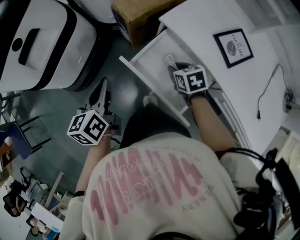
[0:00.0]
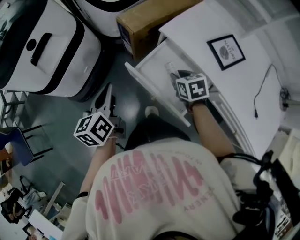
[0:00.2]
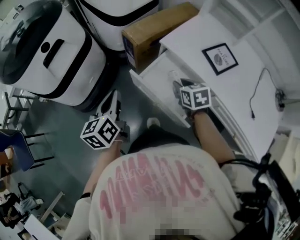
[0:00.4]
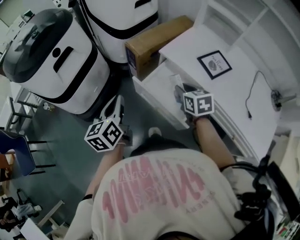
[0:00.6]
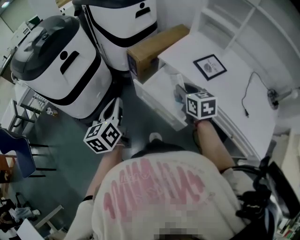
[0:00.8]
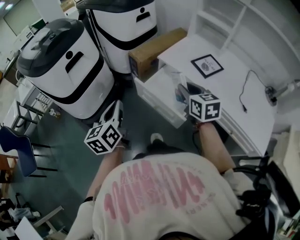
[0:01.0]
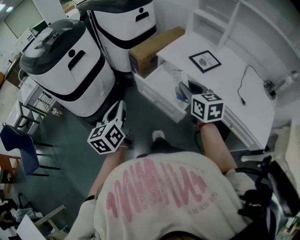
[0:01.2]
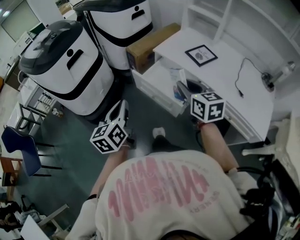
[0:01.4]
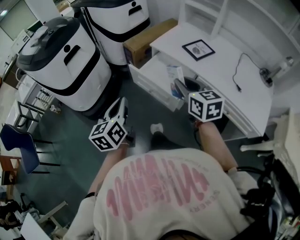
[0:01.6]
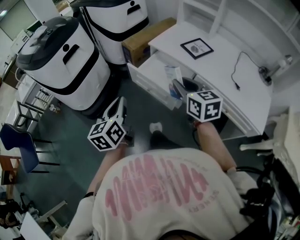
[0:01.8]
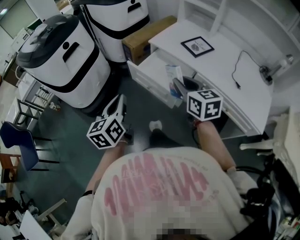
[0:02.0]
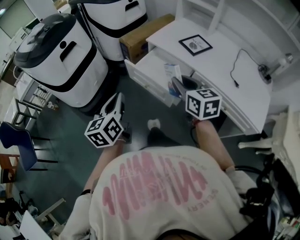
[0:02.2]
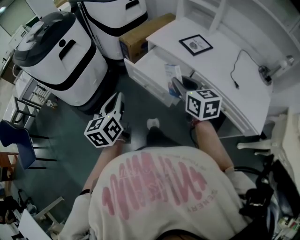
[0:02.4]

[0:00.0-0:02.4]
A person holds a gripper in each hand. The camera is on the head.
0.0 to 1.2 s: The left gripper goes some 25 cm backward and upward; the right gripper moves upward and backward, approximately 35 cm, and tips its fingers upward by approximately 40 degrees.
1.2 to 2.4 s: The right gripper goes roughly 5 cm backward. Meanwhile the left gripper shifts by approximately 5 cm.

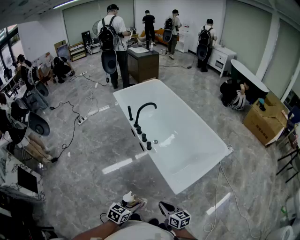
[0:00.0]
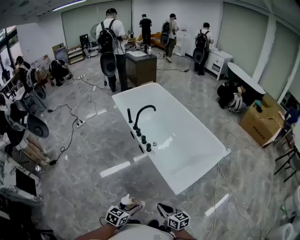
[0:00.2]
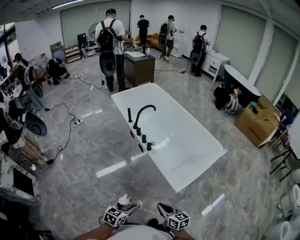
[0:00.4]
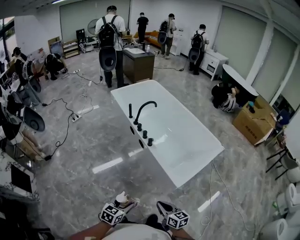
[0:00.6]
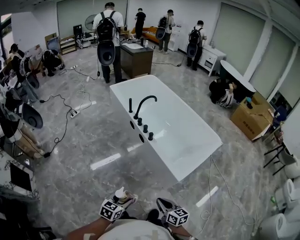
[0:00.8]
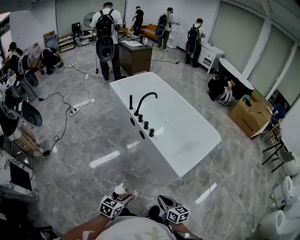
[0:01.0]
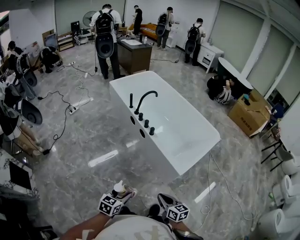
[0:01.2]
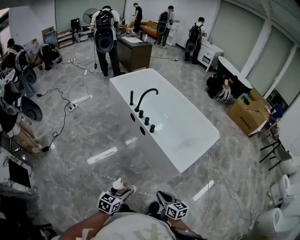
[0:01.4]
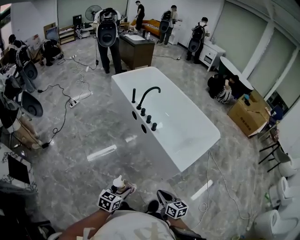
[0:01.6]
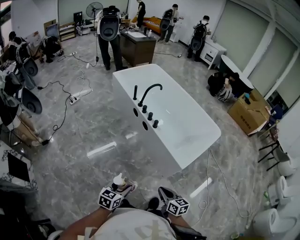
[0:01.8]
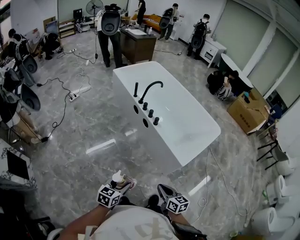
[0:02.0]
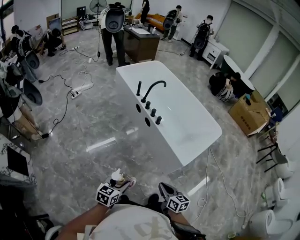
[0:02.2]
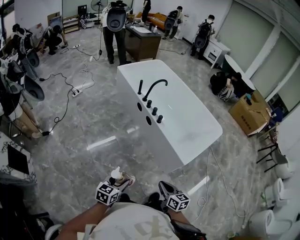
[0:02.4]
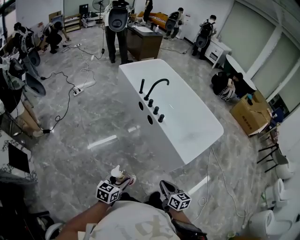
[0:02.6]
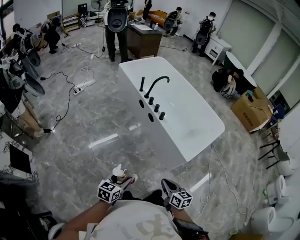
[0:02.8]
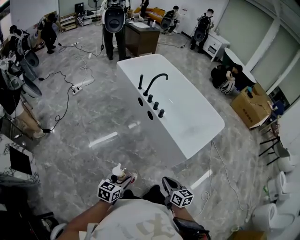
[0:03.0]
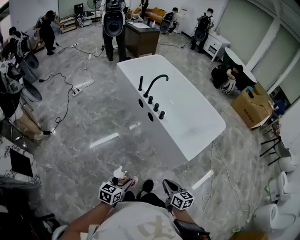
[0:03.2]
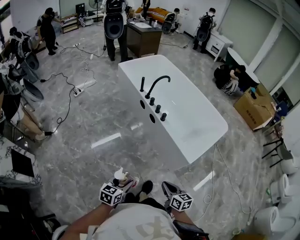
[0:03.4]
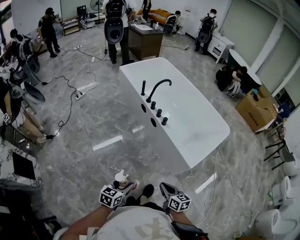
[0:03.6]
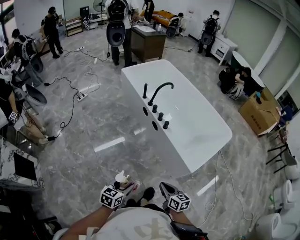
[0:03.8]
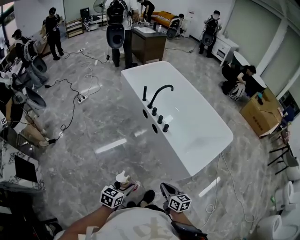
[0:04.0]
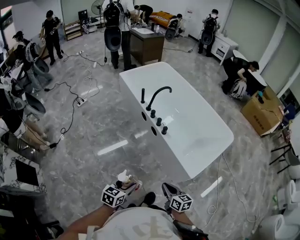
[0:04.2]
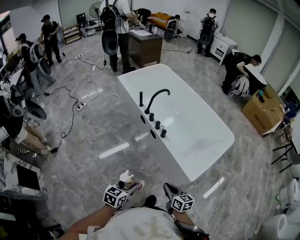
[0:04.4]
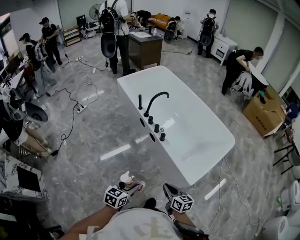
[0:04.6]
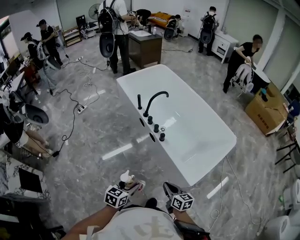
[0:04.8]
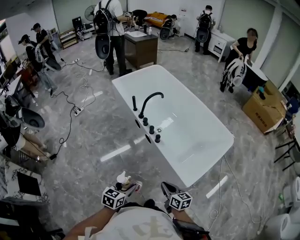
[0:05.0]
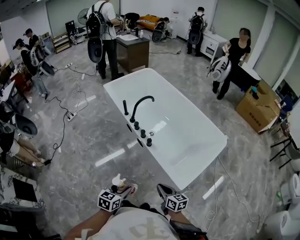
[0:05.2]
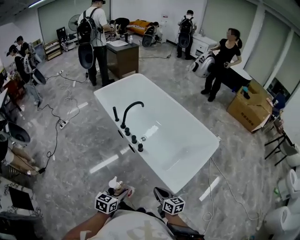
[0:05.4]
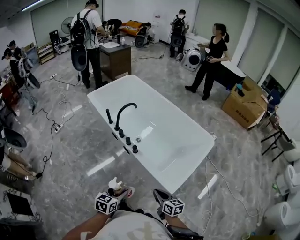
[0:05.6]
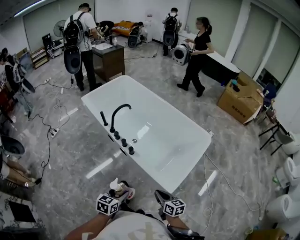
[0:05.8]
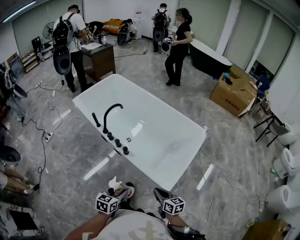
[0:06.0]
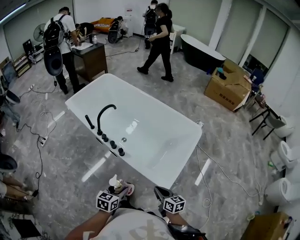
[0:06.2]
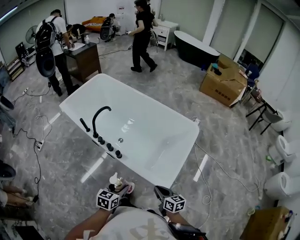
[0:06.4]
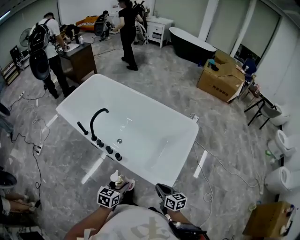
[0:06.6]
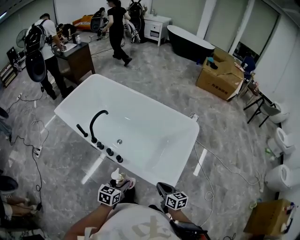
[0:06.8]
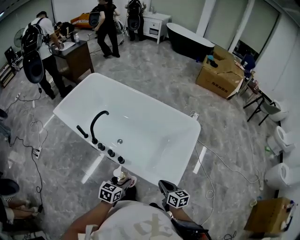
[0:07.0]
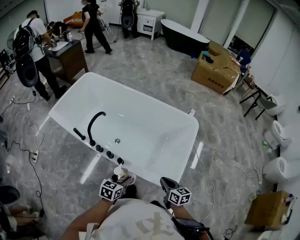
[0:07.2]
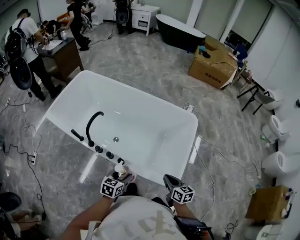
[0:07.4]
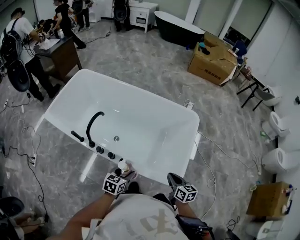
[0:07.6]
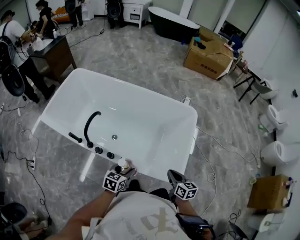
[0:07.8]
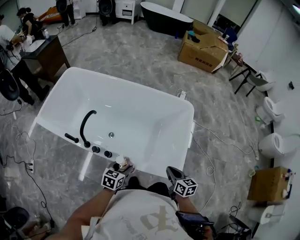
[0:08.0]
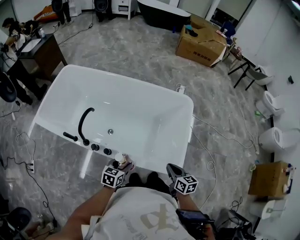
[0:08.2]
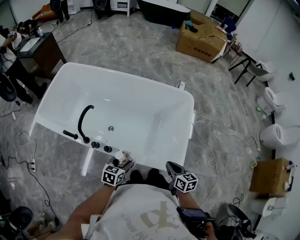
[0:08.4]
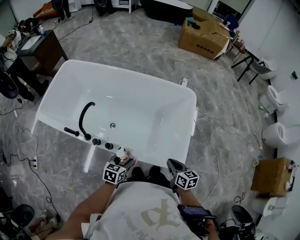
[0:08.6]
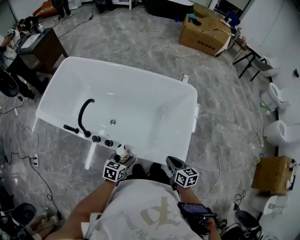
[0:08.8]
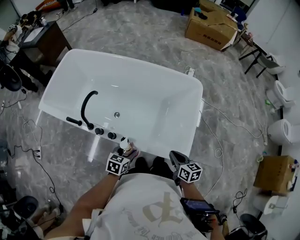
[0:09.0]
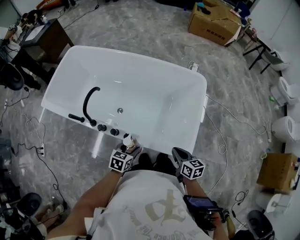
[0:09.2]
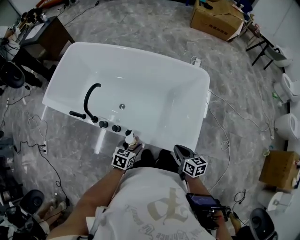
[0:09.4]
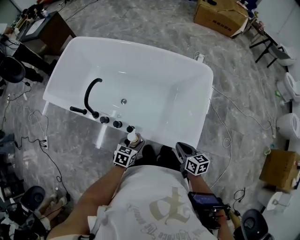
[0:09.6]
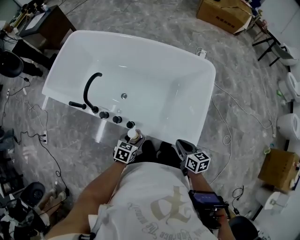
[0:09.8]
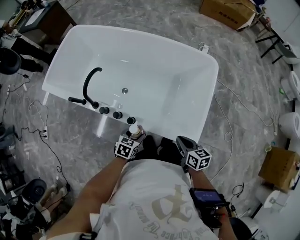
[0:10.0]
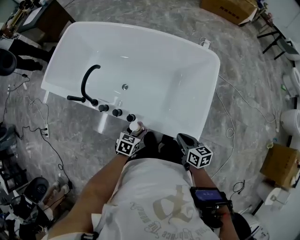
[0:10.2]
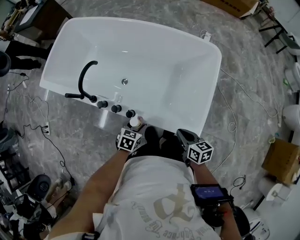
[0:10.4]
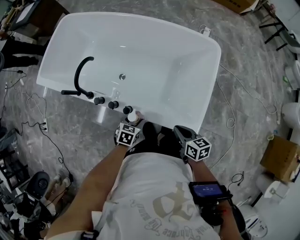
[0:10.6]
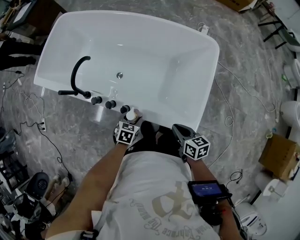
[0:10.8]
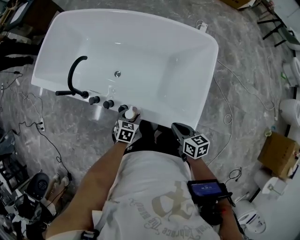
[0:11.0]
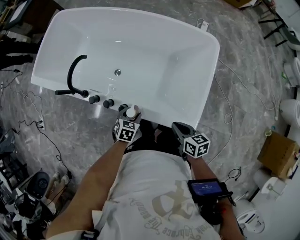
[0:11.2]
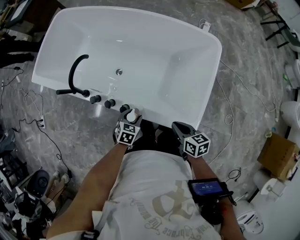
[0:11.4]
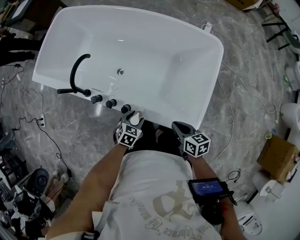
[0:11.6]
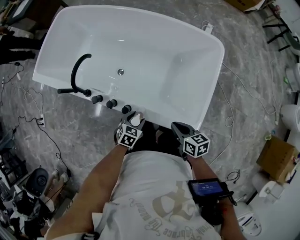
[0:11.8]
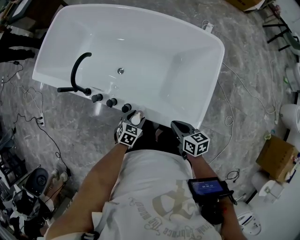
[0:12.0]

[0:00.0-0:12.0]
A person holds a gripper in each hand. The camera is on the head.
0.0 to 1.6 s: Both grippers travel together to the left and backward, about 20 cm.
1.6 to 3.0 s: The left gripper goes roughly 5 cm to the left.
3.0 to 4.4 s: The left gripper goes about 15 cm forward and to the right; the right gripper goes approximately 15 cm forward.
4.4 to 6.0 s: The right gripper moves to the right and forward, roughly 15 cm. Meanwhile the left gripper moves forward and to the right, about 20 cm.
6.0 to 7.6 s: The left gripper shifts by some 25 cm, and turns by roughly 20 degrees; the right gripper moves roughly 15 cm, and rotates roughly 30 degrees.
7.6 to 9.0 s: The left gripper goes some 5 cm downward.
9.0 to 10.4 s: The left gripper heads downward, covering some 10 cm.
10.4 to 12.0 s: The grippers make only small movements.

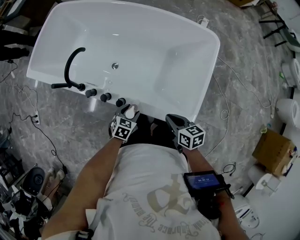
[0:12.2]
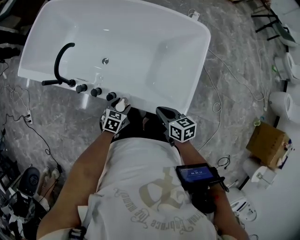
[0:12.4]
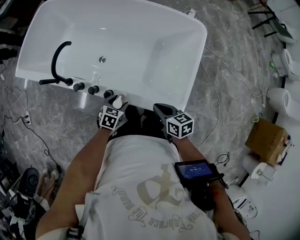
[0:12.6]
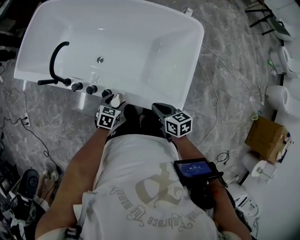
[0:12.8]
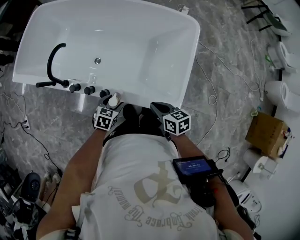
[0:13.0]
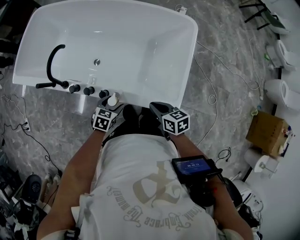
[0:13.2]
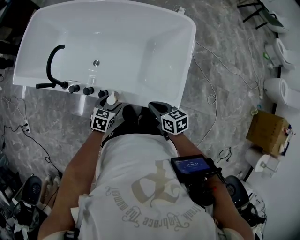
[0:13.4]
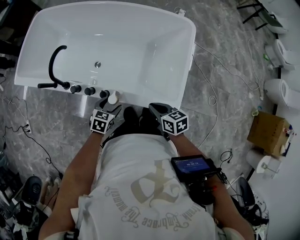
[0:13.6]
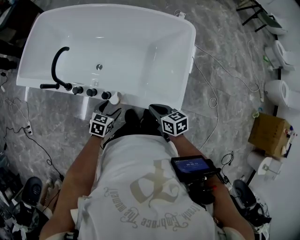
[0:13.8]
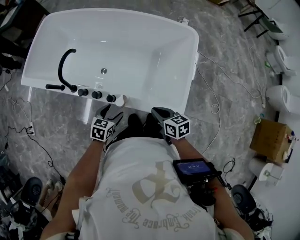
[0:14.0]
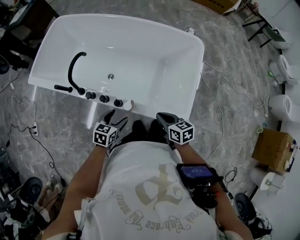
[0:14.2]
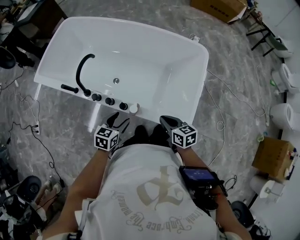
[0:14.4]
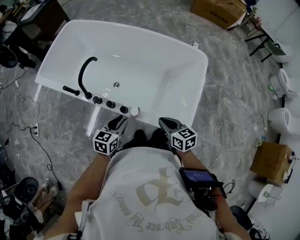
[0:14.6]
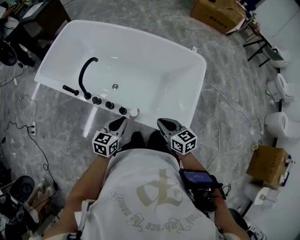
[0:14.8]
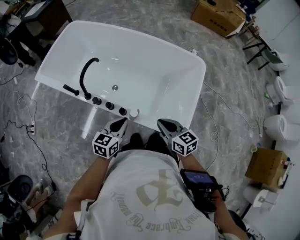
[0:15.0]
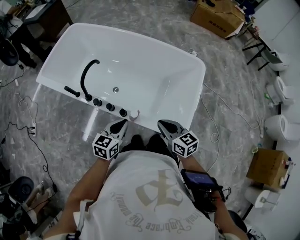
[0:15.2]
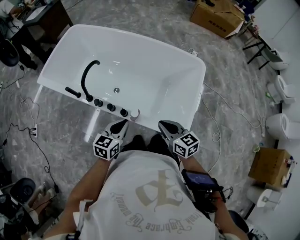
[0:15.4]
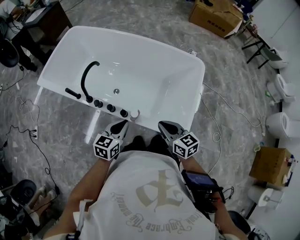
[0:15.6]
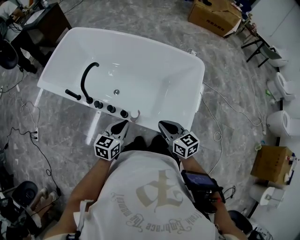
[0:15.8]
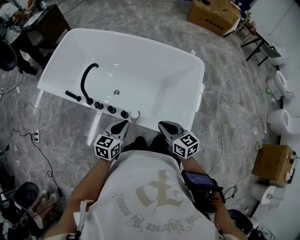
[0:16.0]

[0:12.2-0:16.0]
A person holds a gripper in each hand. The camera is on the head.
12.2 to 13.4 s: The grippers move only a little.
13.4 to 14.8 s: The left gripper shifts some 15 cm upward, turns by some 30 degrees, and closes up; the right gripper shifts some 10 cm upward and to the left, and turns by roughly 20 degrees.
14.8 to 16.0 s: There are only small adjustments of the grippers.

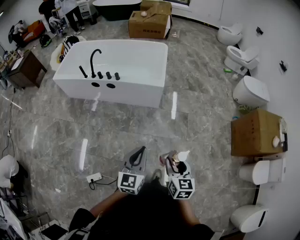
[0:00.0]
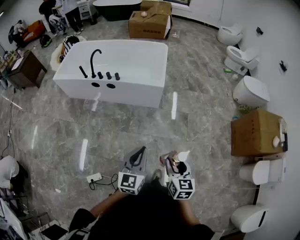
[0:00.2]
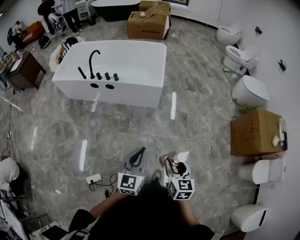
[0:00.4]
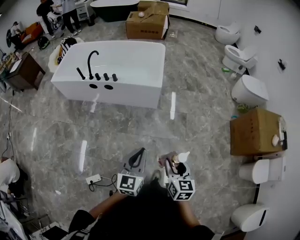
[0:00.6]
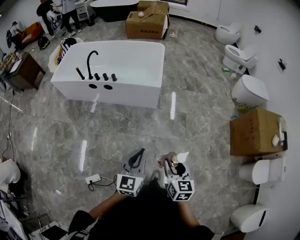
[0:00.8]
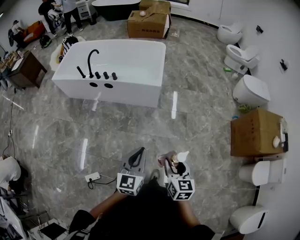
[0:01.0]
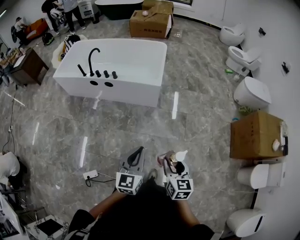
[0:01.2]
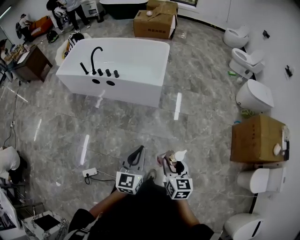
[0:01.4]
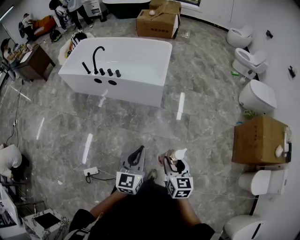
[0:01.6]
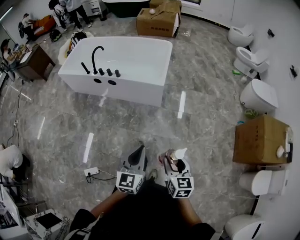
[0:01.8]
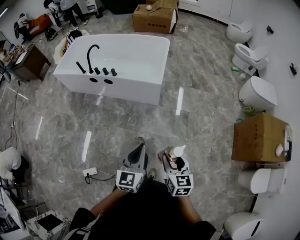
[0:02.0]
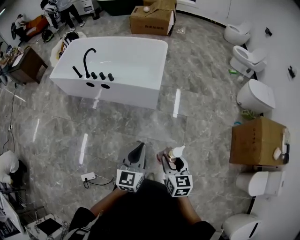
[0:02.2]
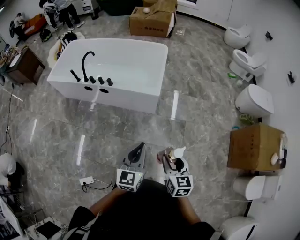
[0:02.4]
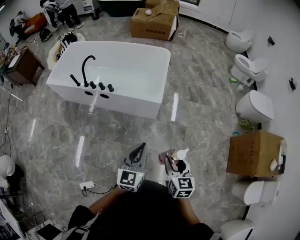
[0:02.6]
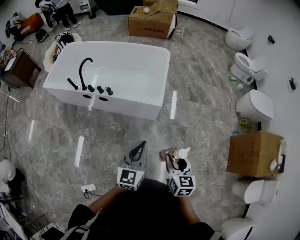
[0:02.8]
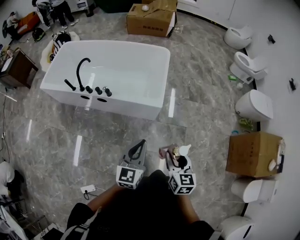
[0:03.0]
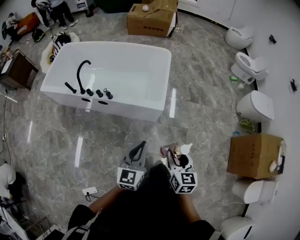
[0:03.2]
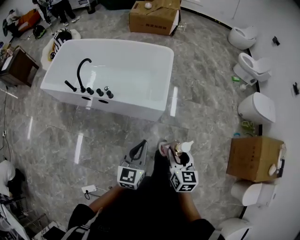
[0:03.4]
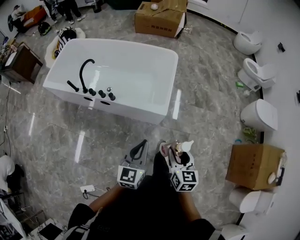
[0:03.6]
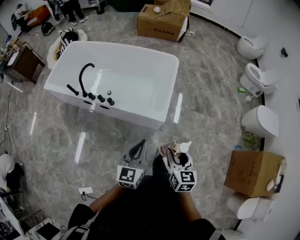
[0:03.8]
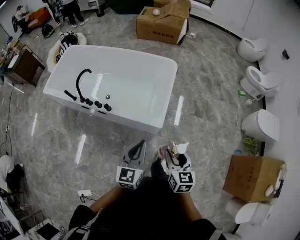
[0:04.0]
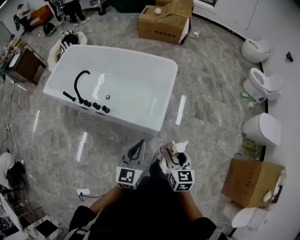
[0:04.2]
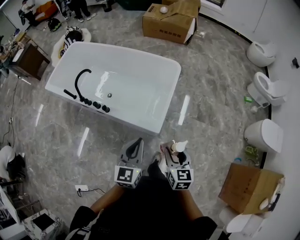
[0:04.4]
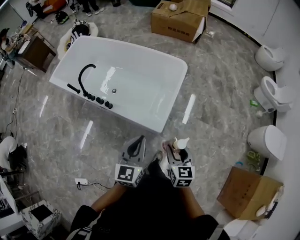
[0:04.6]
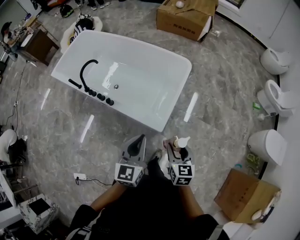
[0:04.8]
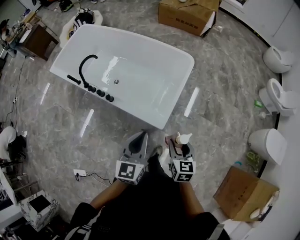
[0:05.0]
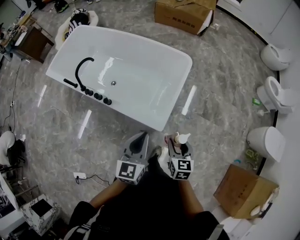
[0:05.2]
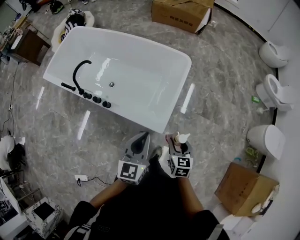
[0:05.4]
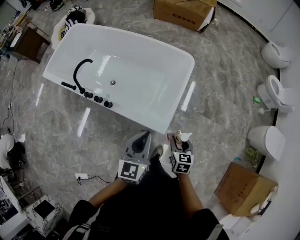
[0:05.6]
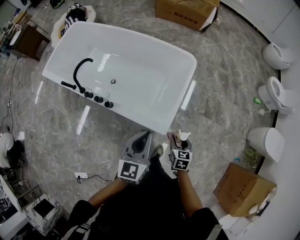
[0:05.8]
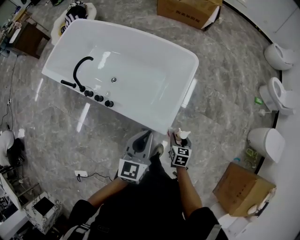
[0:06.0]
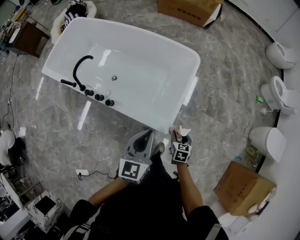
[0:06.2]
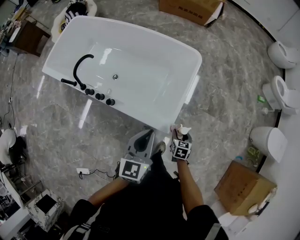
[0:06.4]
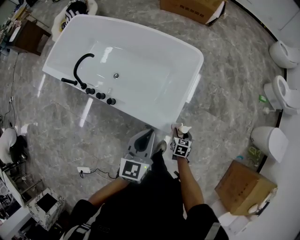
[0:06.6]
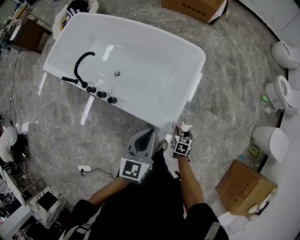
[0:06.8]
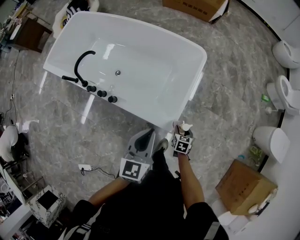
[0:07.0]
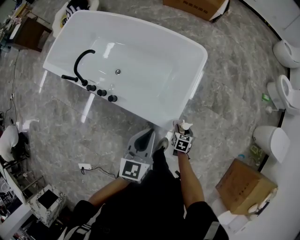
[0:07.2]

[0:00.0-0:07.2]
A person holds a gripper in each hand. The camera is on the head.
0.0 to 1.4 s: The two grippers go about 10 cm to the right.
1.4 to 2.8 s: The grippers both shift forward by about 30 cm.
2.8 to 4.4 s: Both grippers travel together forward, some 30 cm.
4.4 to 5.8 s: The right gripper shifts approximately 25 cm downward and forward; the left gripper heads forward, covering about 15 cm.
5.8 to 7.2 s: The right gripper moves downward, about 15 cm.
